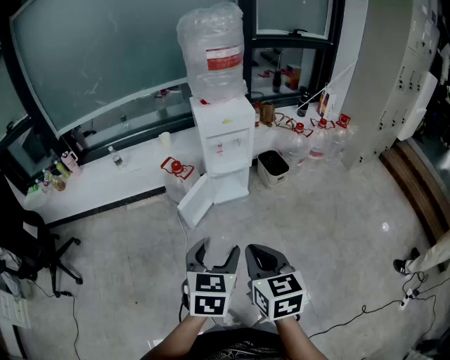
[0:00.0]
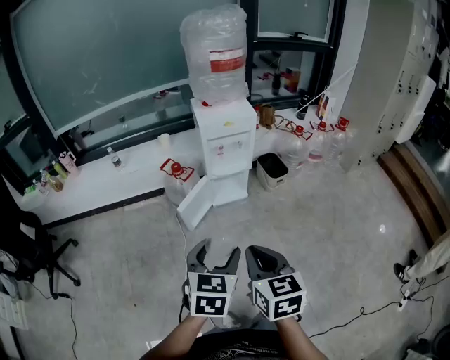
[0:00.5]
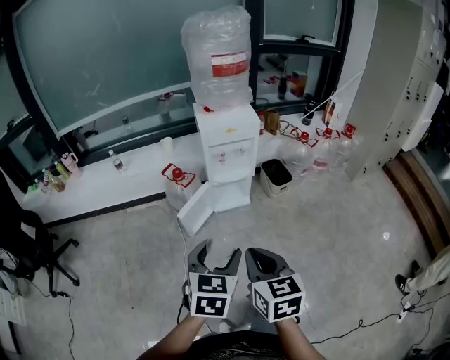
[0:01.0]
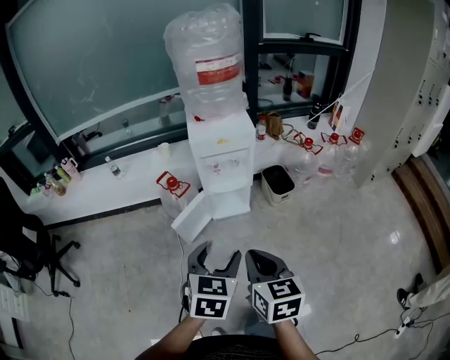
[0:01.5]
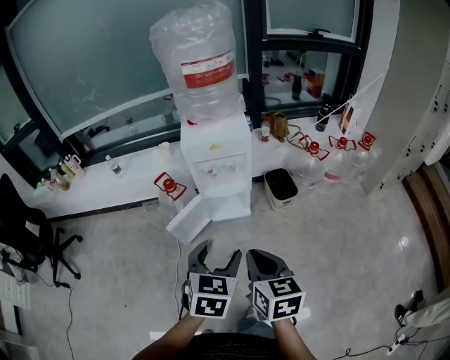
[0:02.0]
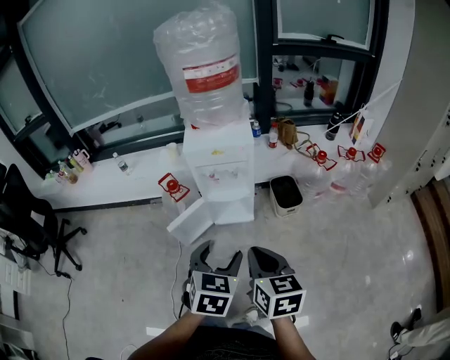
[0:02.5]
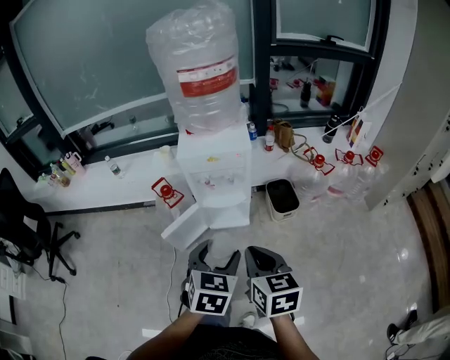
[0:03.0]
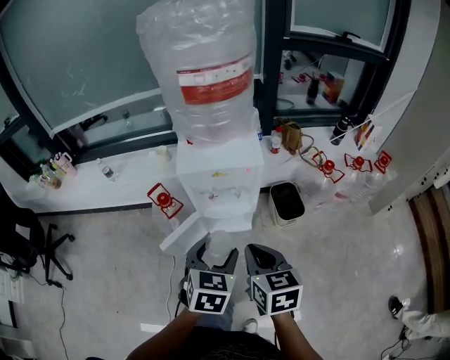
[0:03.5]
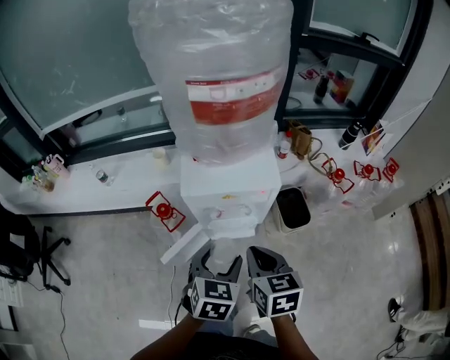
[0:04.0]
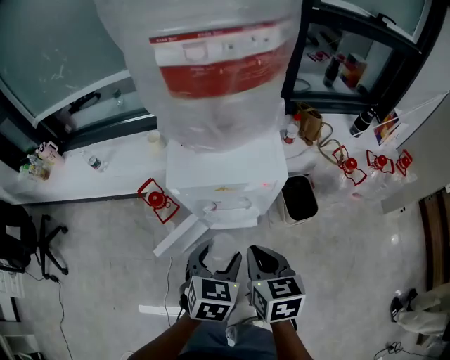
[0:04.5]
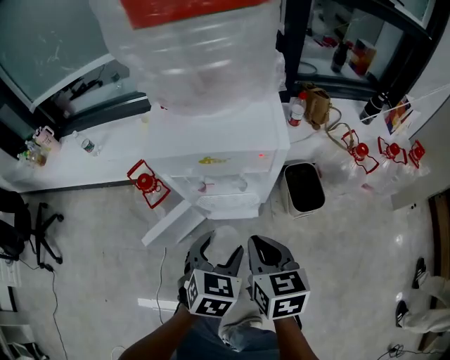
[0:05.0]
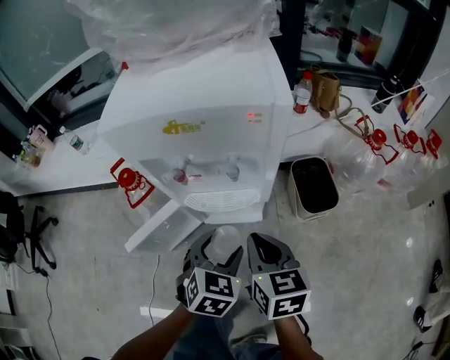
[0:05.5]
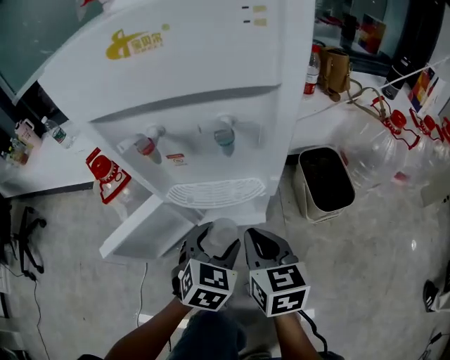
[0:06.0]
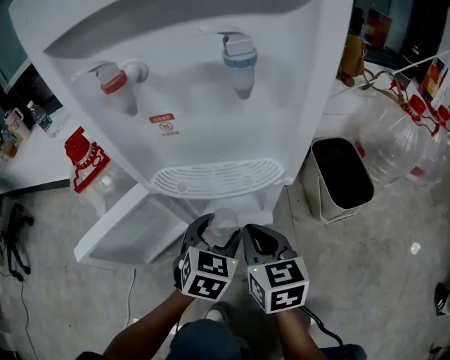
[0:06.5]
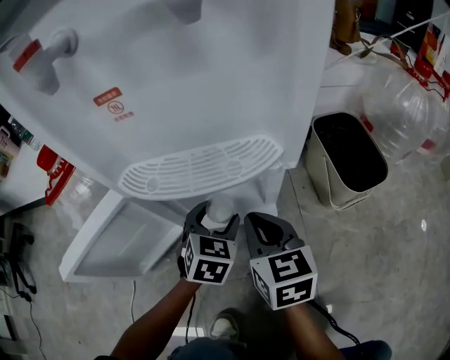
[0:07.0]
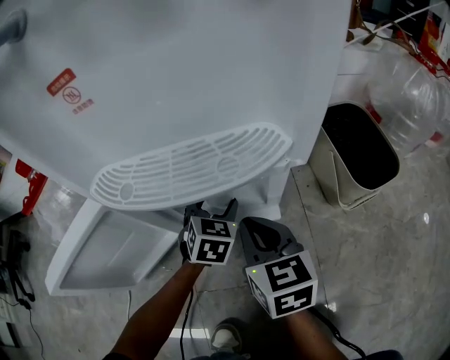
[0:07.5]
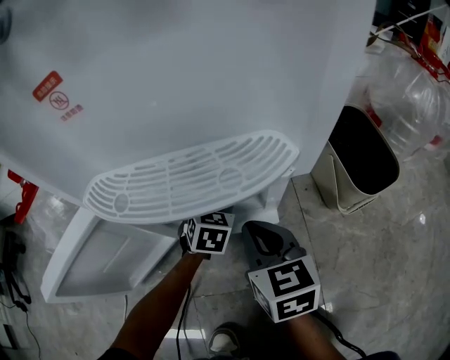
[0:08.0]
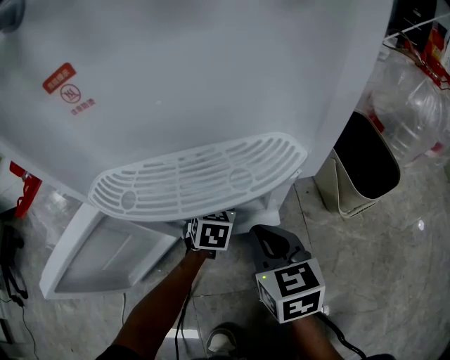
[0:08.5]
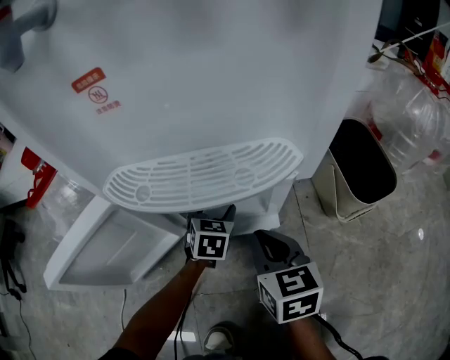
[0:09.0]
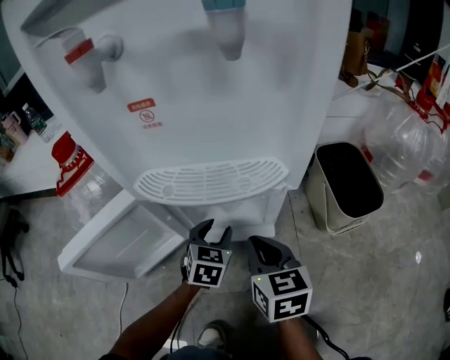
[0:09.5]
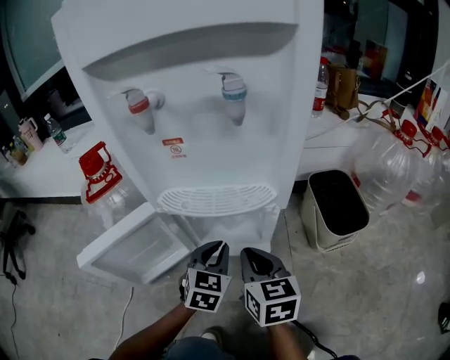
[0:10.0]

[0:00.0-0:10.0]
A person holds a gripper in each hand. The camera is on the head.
0:00.0 to 0:02.0: Both grippers travel together forward and to the right, about 25 cm.
0:02.0 to 0:04.0: The two grippers go about 30 cm forward.
0:04.0 to 0:06.0: The grippers both shift downward by some 40 cm.
0:06.0 to 0:08.0: The right gripper heads downward, covering some 20 cm, while the left gripper shifts some 35 cm downward and forward.
0:08.0 to 0:10.0: The right gripper heads upward and backward, covering about 10 cm. The left gripper heads backward and upward, covering some 20 cm, and closes up.

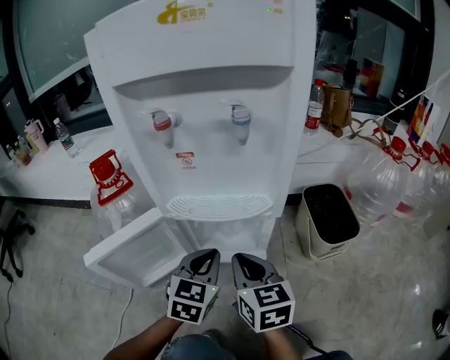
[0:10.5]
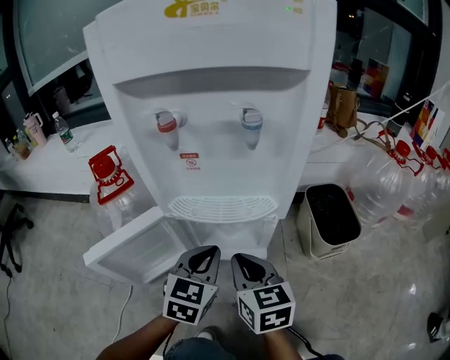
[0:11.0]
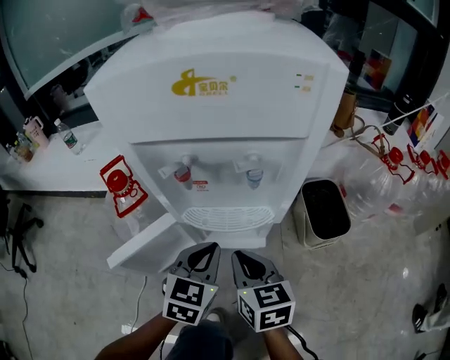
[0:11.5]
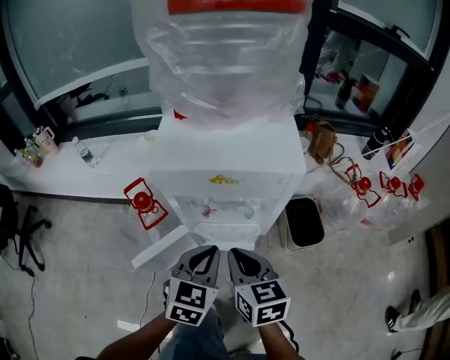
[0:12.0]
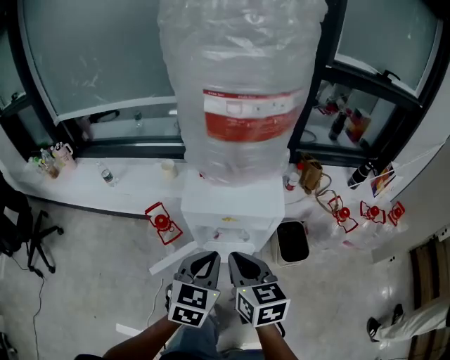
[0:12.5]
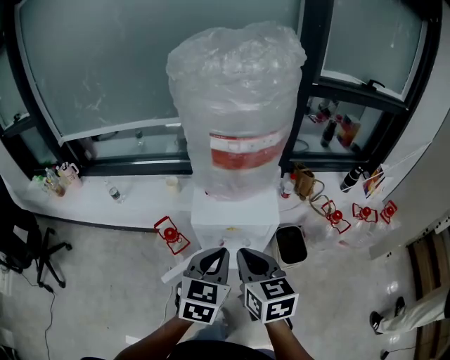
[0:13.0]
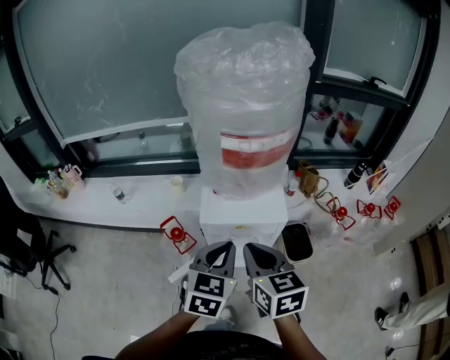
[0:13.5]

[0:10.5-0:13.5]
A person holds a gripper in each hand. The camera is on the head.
0:10.5 to 0:12.0: Both grippers travel together upward, approximately 30 cm.
0:12.0 to 0:13.5: The two grippers go approximately 30 cm upward.

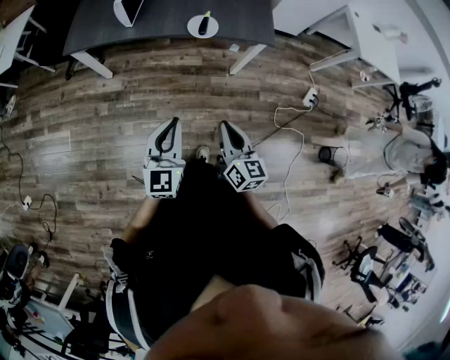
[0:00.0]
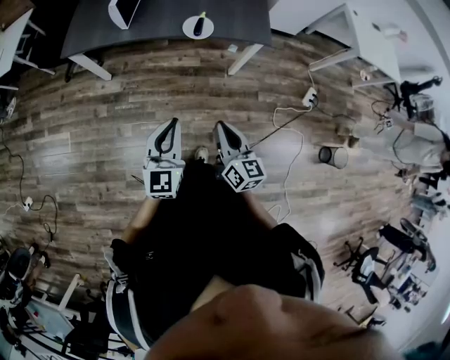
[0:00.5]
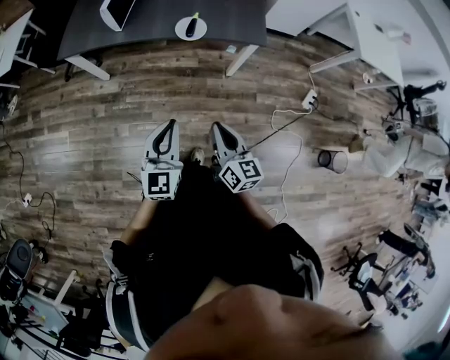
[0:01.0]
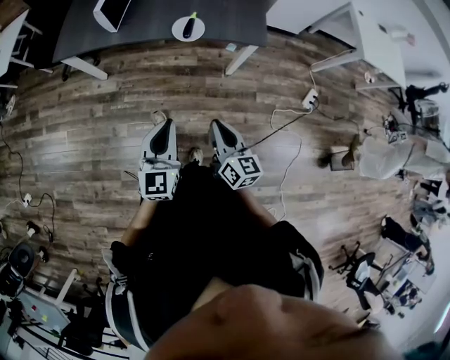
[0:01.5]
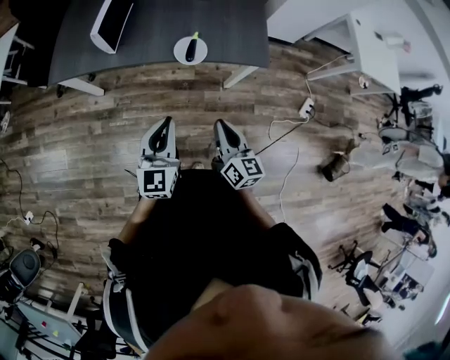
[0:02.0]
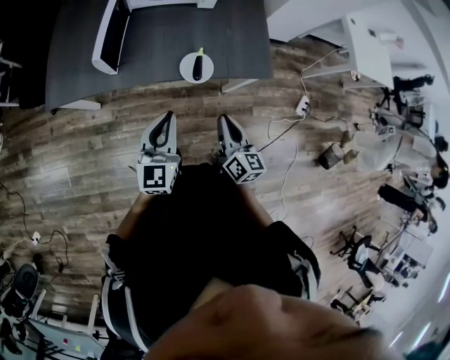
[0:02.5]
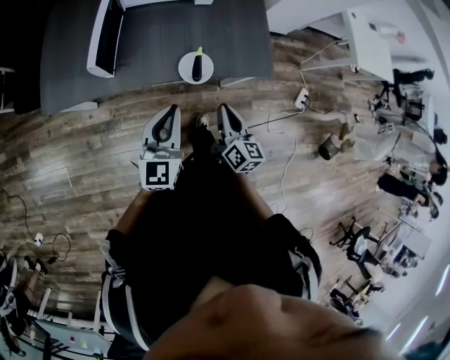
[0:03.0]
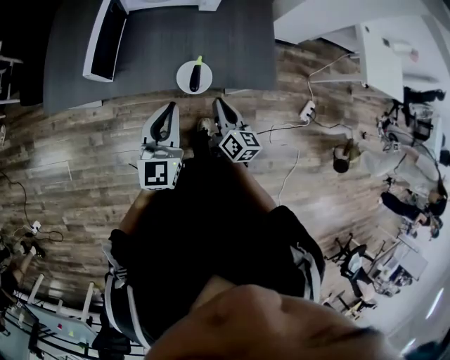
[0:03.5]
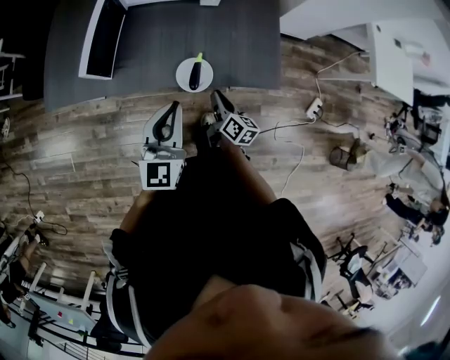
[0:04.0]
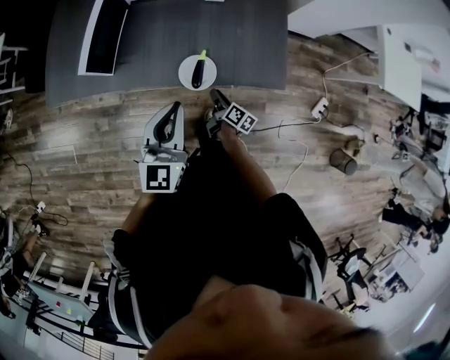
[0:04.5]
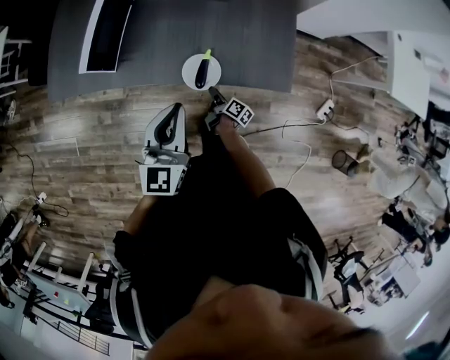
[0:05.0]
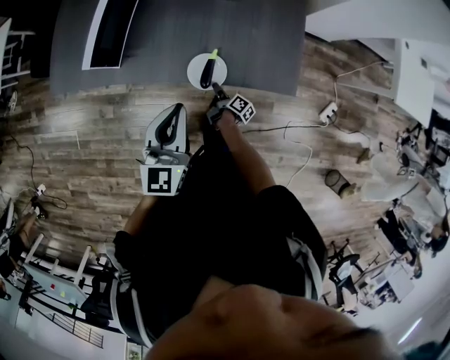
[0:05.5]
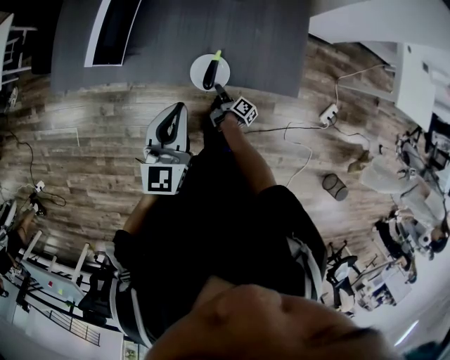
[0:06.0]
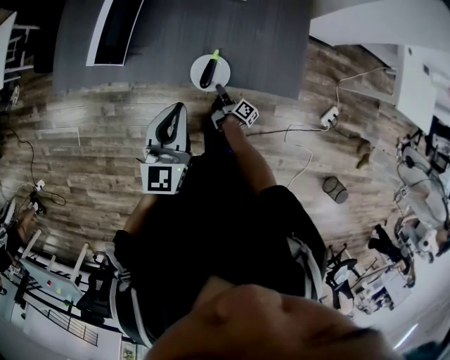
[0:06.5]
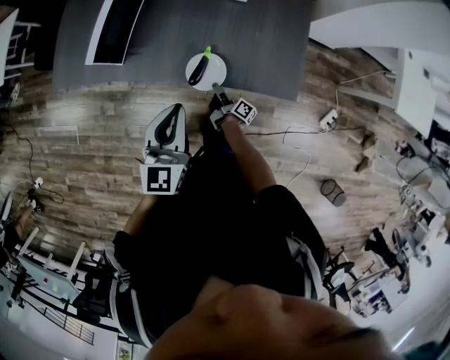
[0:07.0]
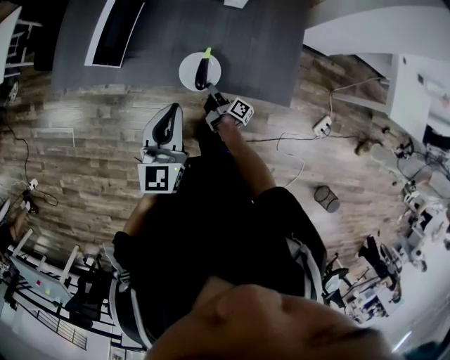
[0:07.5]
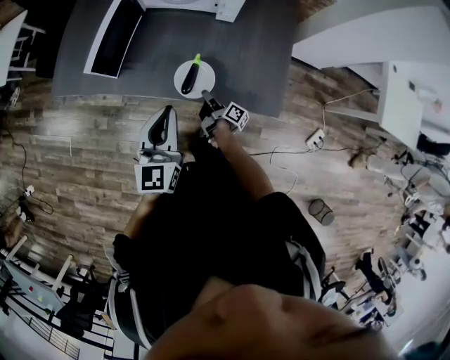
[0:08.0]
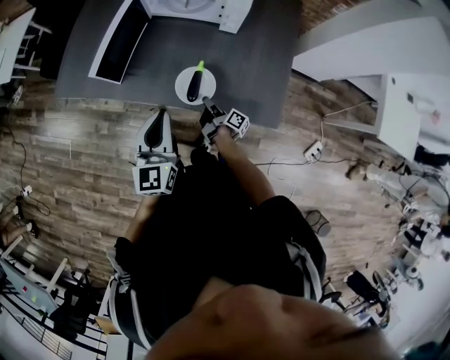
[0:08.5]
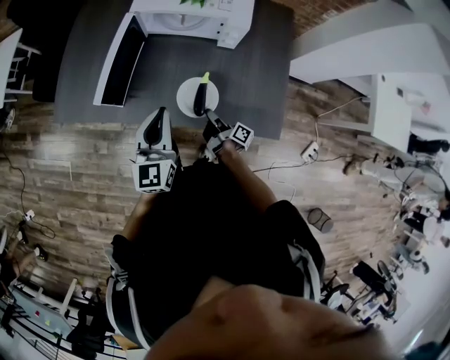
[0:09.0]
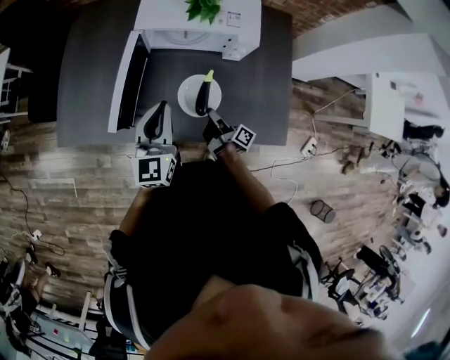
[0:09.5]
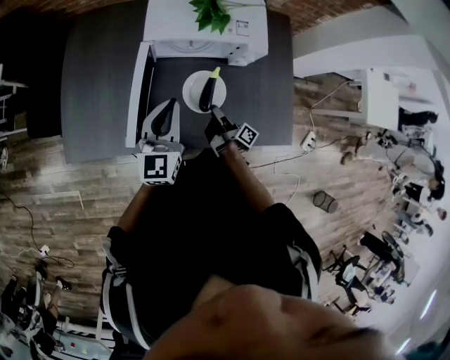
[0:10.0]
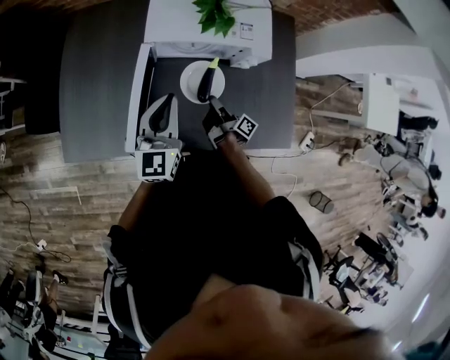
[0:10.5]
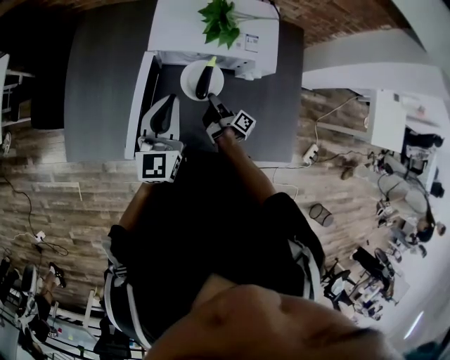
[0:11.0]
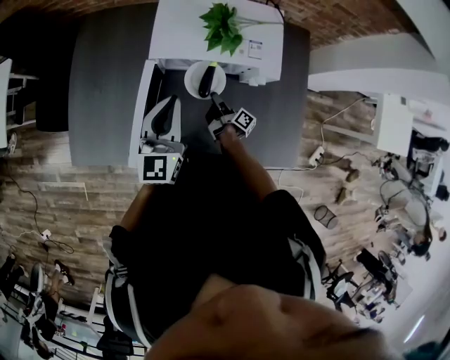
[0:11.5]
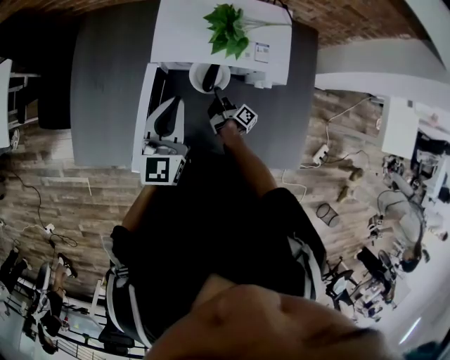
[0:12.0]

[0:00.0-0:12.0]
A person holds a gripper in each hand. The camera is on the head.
0:00.0 to 0:02.0: The grippers both shift forward by roughly 15 cm.
0:02.0 to 0:04.0: The right gripper moves forward and downward, roughly 30 cm, and turns by some 20 degrees; the left gripper goes roughly 25 cm forward.
0:04.0 to 0:06.0: The right gripper heads downward, covering roughly 20 cm, and changes its angle by approximately 40 degrees.
0:06.0 to 0:08.0: The right gripper shifts about 10 cm upward.
0:08.0 to 0:10.0: The right gripper is displaced forward, upward and to the left by about 20 cm, while the left gripper travels forward and to the left by some 30 cm.
0:10.0 to 0:12.0: The left gripper heads forward, covering roughly 10 cm. The right gripper is displaced forward and downward by about 20 cm.

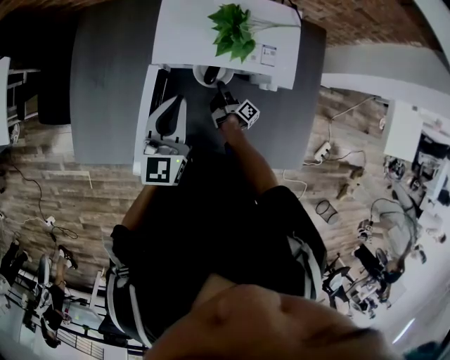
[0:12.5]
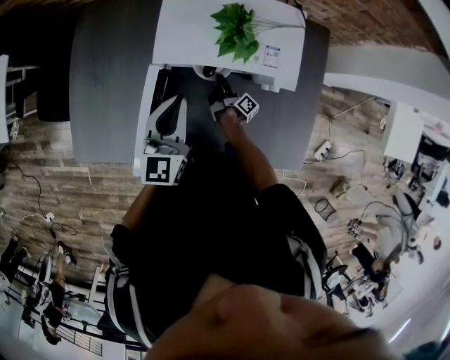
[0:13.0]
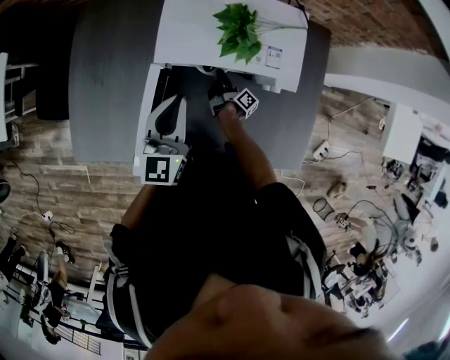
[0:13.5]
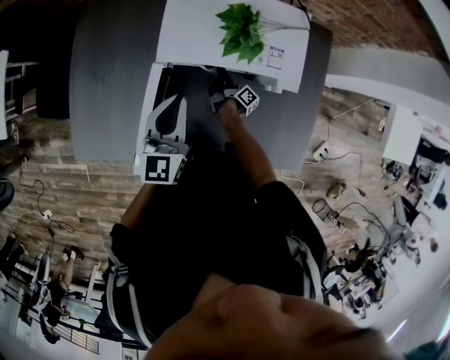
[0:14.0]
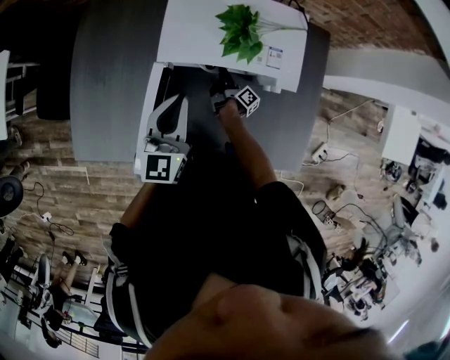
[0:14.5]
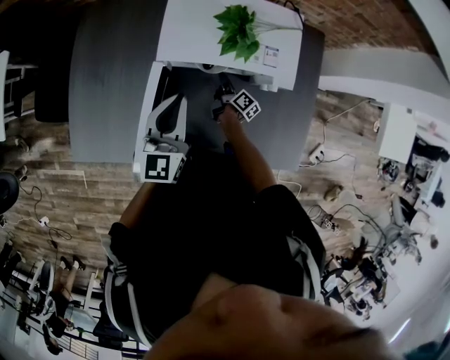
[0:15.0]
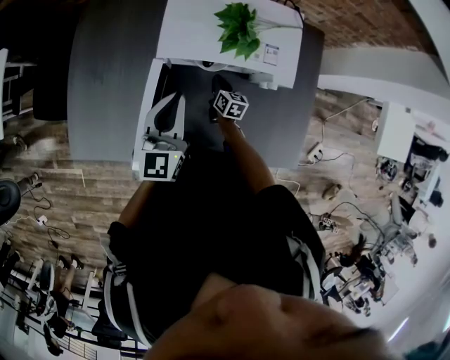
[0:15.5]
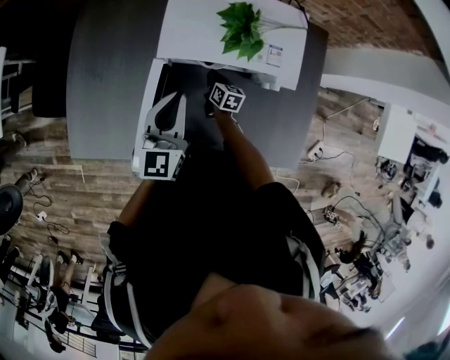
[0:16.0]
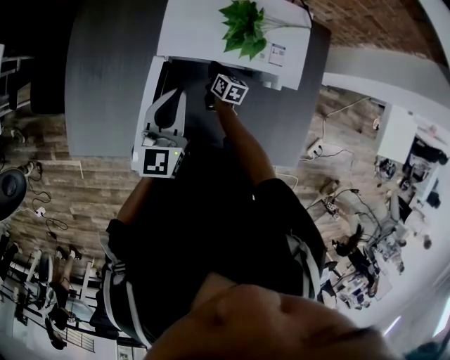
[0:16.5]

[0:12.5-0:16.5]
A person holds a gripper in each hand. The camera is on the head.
0:12.5 to 0:14.5: The right gripper moves forward, roughly 5 cm.
0:14.5 to 0:16.5: The right gripper twists about 50 degrees counterclockwise, seen from behind.
